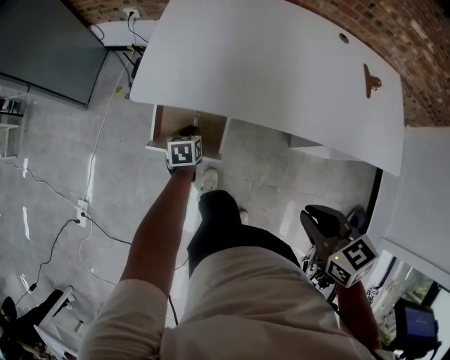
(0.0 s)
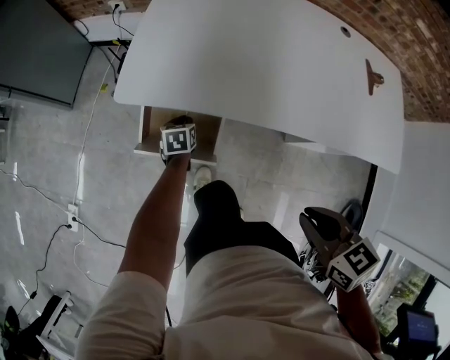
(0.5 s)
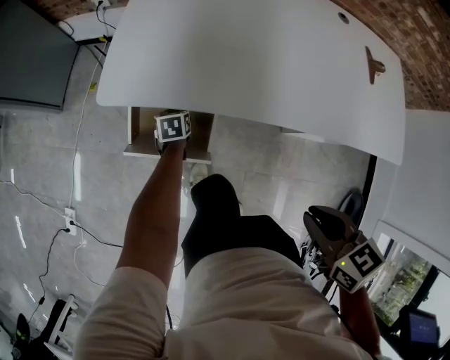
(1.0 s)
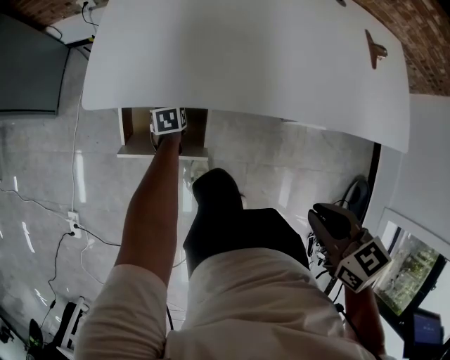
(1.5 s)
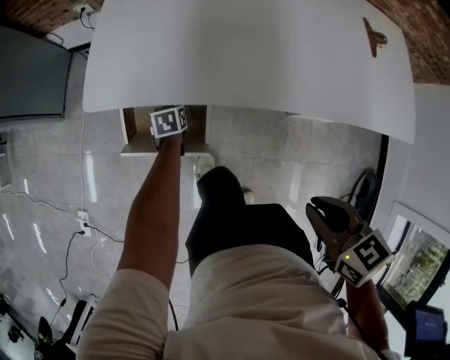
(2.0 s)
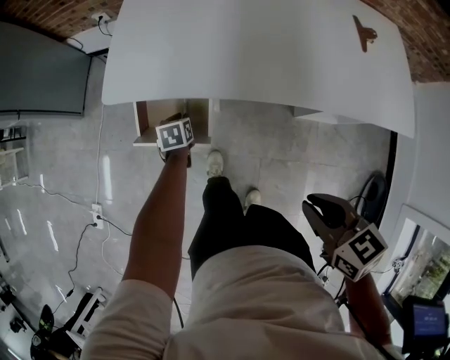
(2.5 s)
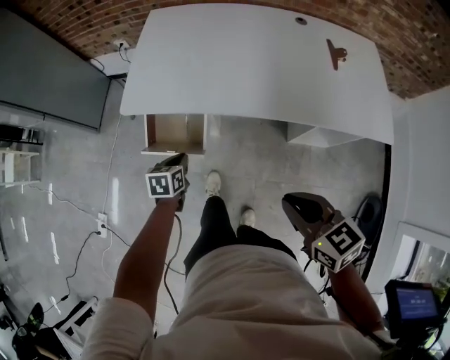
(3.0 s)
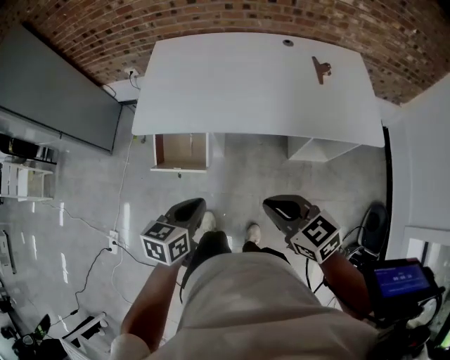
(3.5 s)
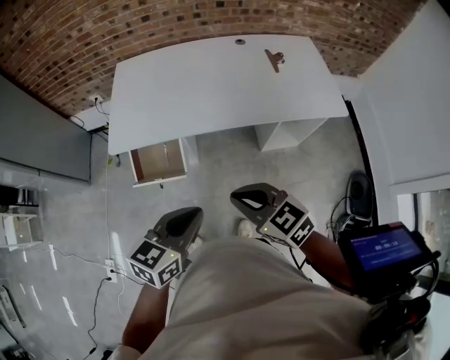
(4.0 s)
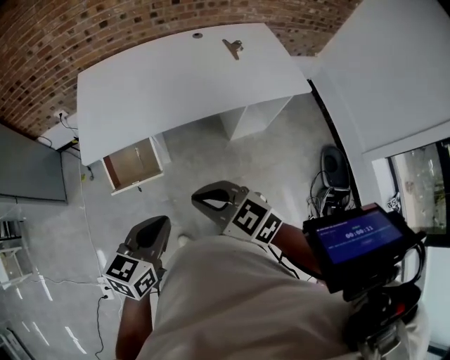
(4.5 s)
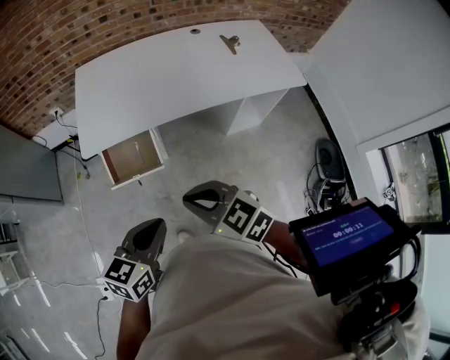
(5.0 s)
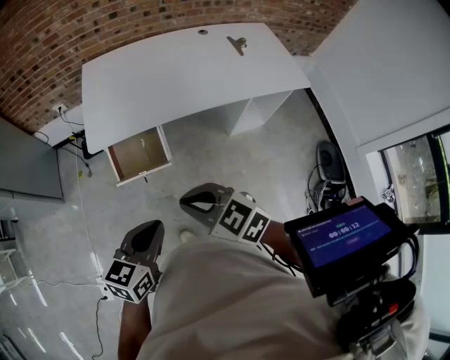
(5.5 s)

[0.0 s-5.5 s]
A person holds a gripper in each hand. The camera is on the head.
0.0 to 2.0 s: The left gripper goes roughly 15 cm downward and forward. Meanwhile the right gripper moves downward, approximately 5 cm.
2.0 to 3.5 s: The left gripper goes about 50 cm upward and backward, and turns by some 30 degrees. The right gripper shifts approximately 15 cm upward and backward, and turns by some 30 degrees.
3.5 to 5.5 s: The right gripper moves to the left, roughly 25 cm, while the left gripper is displaced to the left, backward and upward by roughly 20 cm, and changes its angle by roughly 20 degrees.

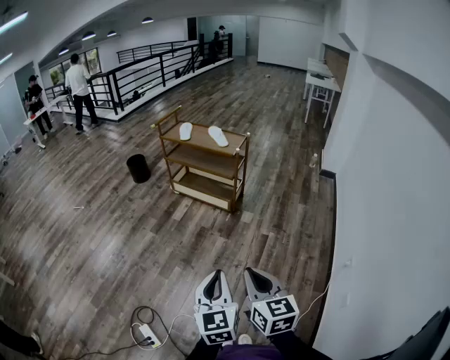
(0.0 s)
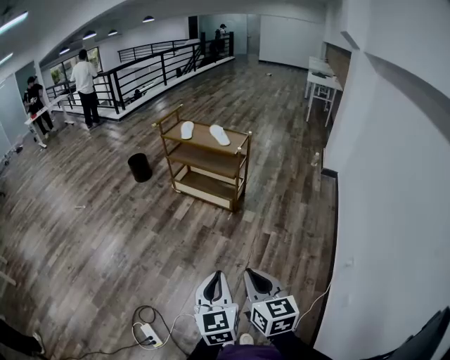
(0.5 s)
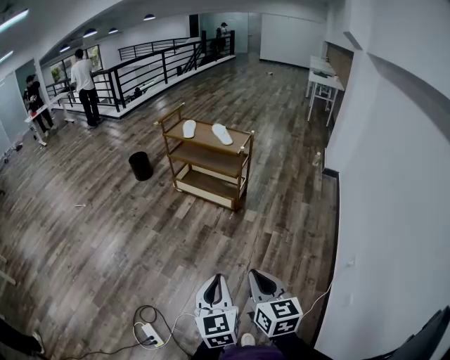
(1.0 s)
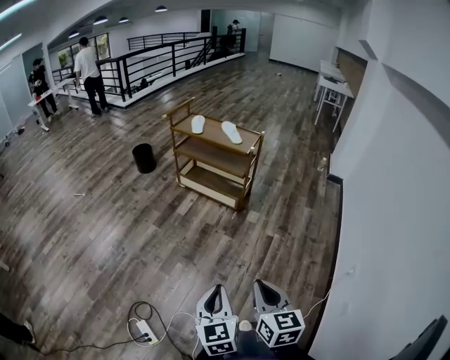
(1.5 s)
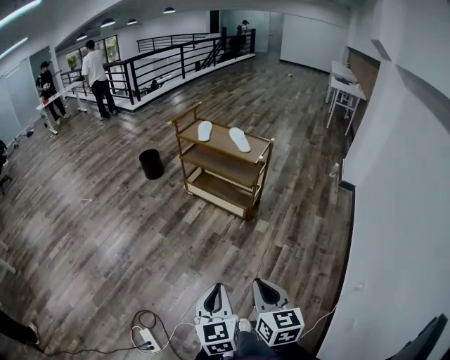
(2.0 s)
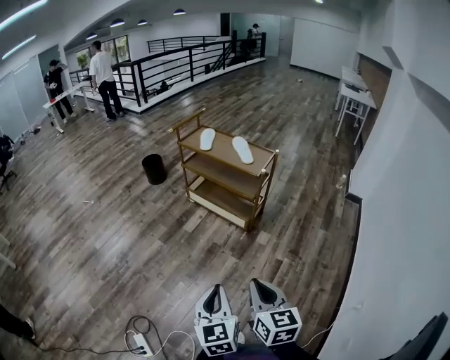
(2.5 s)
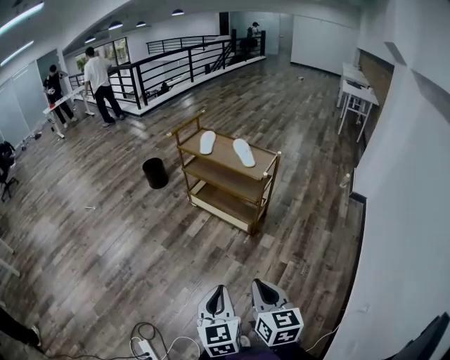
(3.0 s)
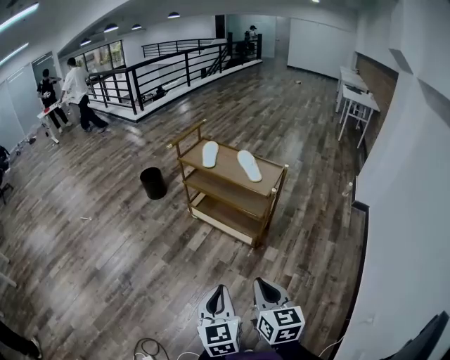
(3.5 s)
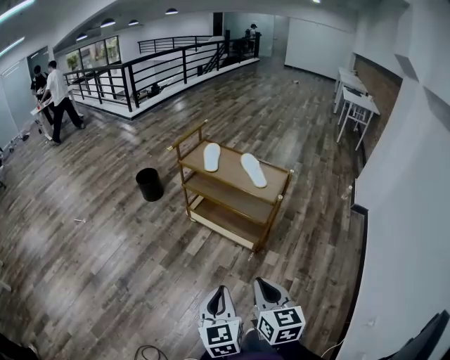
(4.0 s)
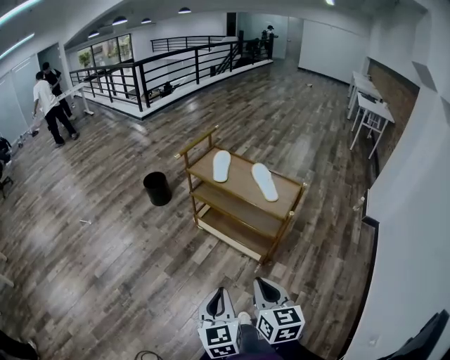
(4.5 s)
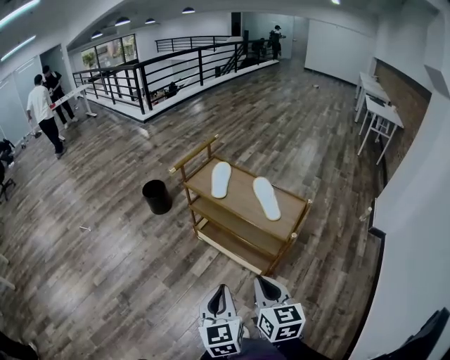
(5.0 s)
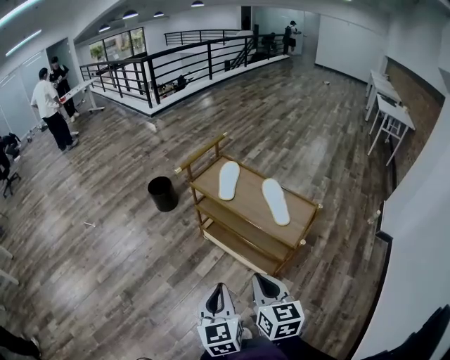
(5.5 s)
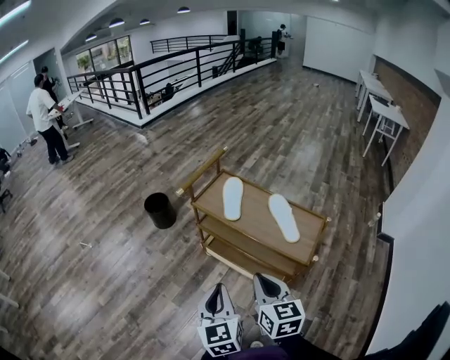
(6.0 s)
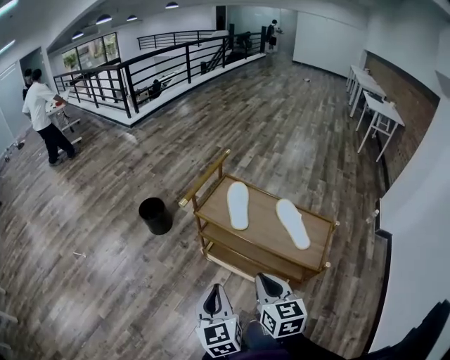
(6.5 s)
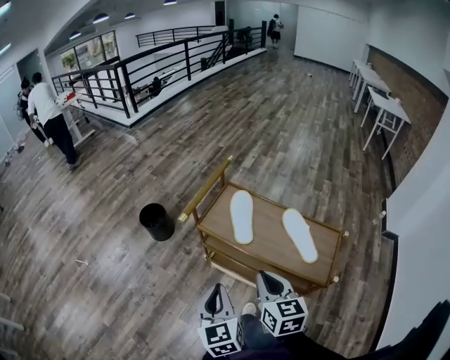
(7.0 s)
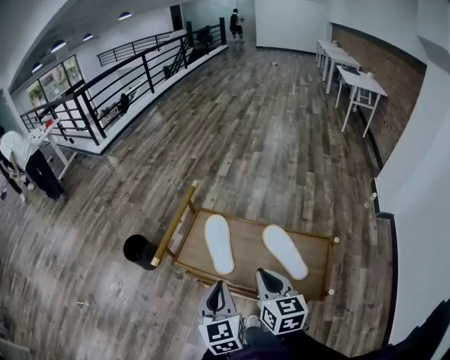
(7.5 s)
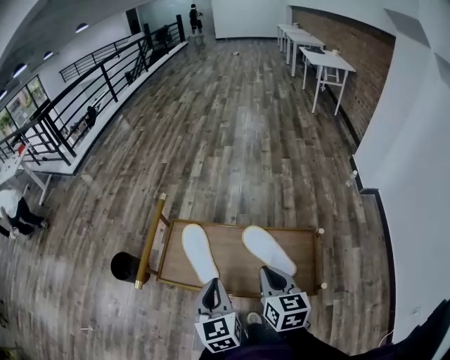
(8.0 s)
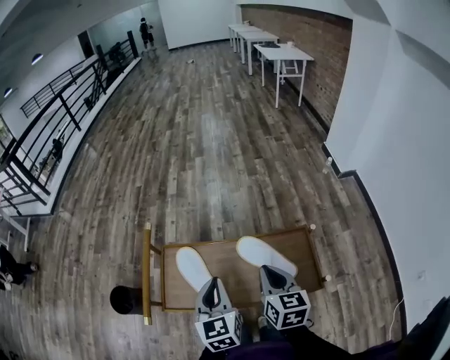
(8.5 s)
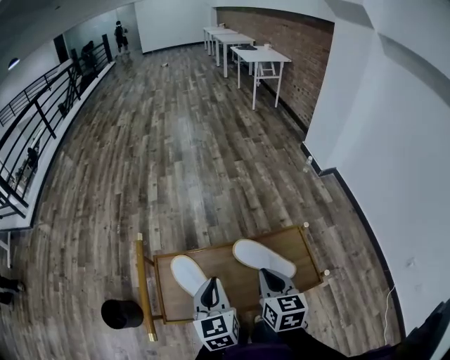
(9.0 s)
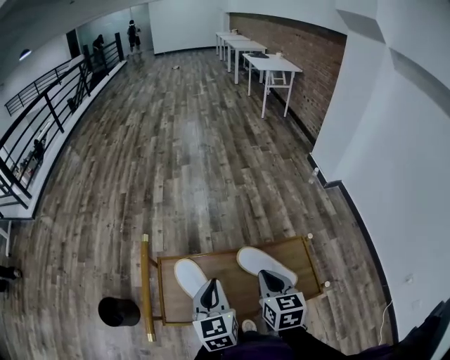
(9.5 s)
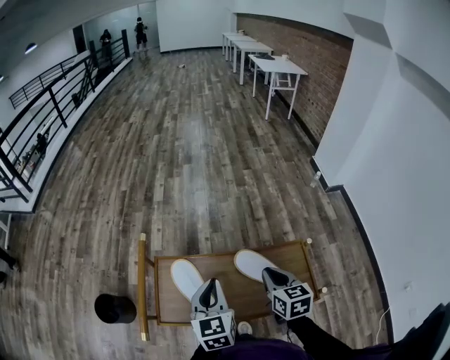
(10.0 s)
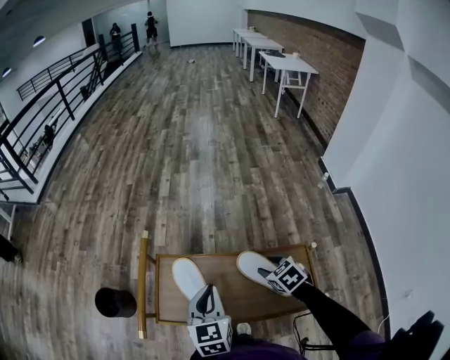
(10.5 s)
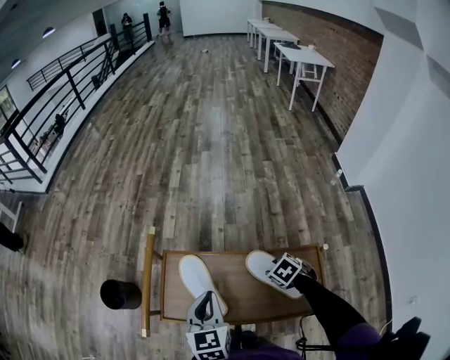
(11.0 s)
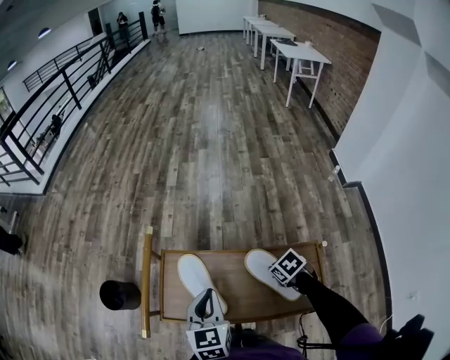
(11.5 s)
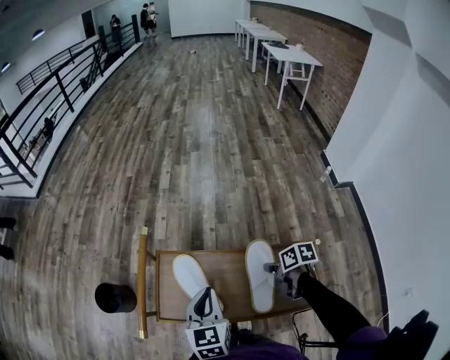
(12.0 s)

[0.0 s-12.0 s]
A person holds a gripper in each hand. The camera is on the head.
0.0 to 2.0 s: The two grippers go about 10 cm forward.
2.0 to 4.0 s: Both grippers move forward, approximately 30 cm.
4.0 to 6.0 s: Both grippers travel together forward, about 35 cm.
6.0 to 8.0 s: The right gripper shifts about 30 cm forward and to the right, and swivels about 30 degrees, while the left gripper goes approximately 35 cm forward, and swivels approximately 20 degrees.
8.0 to 10.0 s: Both grippers travel together forward, roughly 10 cm.
10.0 to 12.0 s: The right gripper is displaced downward by roughly 10 cm, rotates about 50 degrees, and opens, then closes once more.

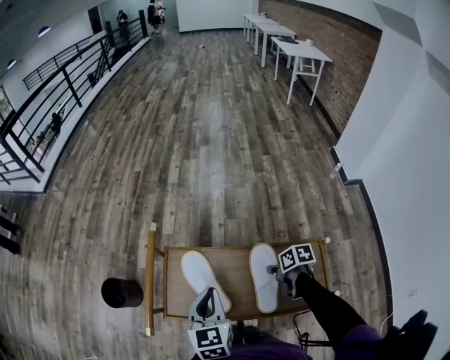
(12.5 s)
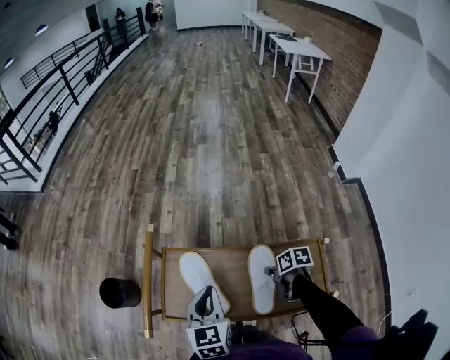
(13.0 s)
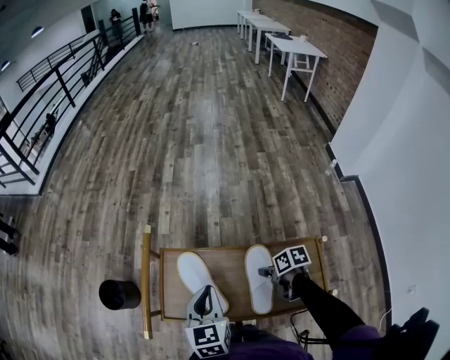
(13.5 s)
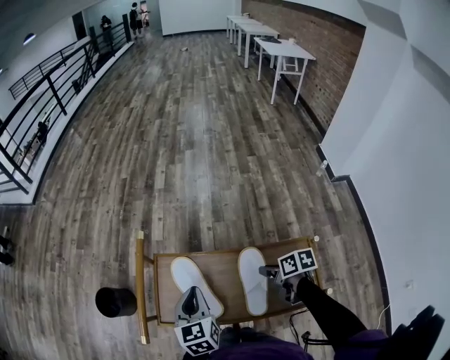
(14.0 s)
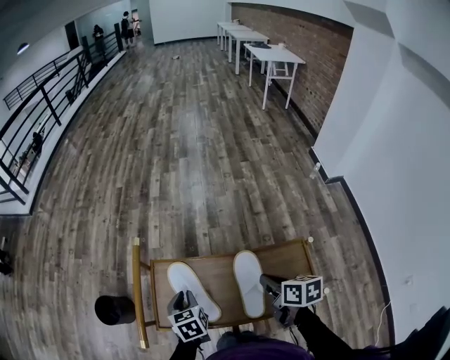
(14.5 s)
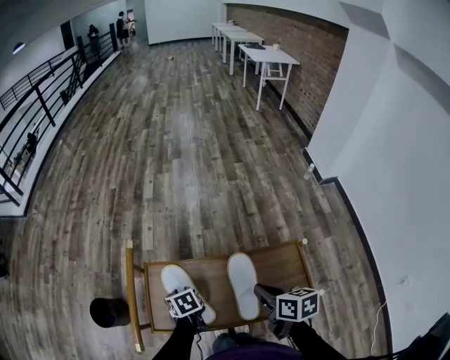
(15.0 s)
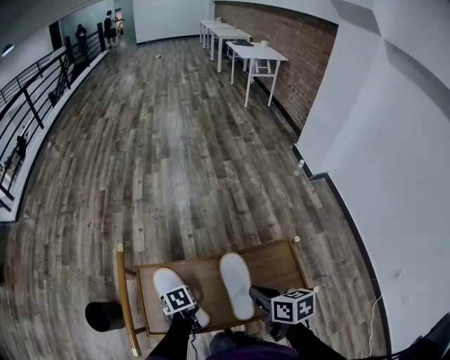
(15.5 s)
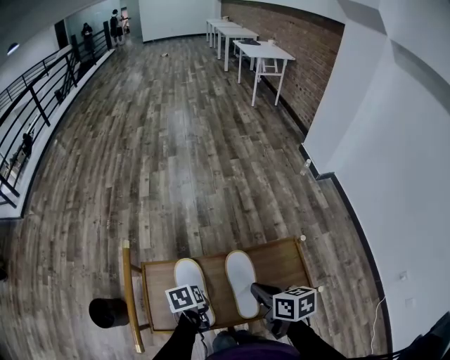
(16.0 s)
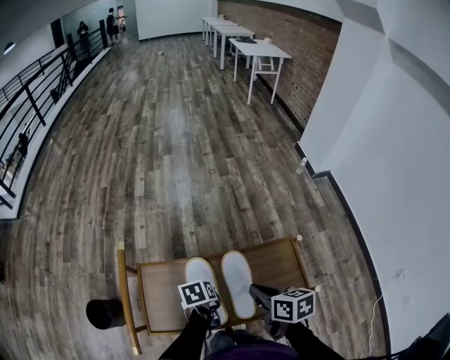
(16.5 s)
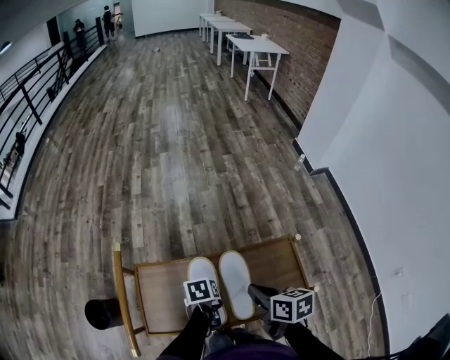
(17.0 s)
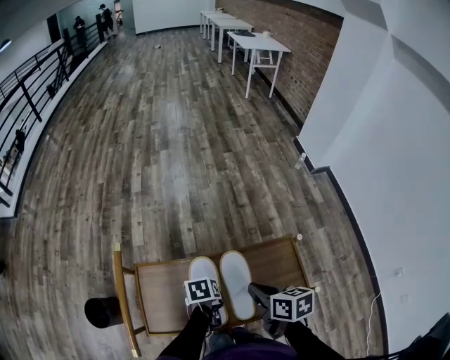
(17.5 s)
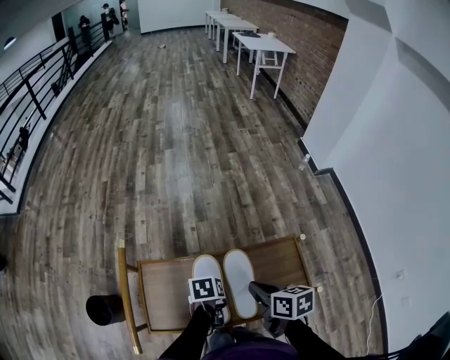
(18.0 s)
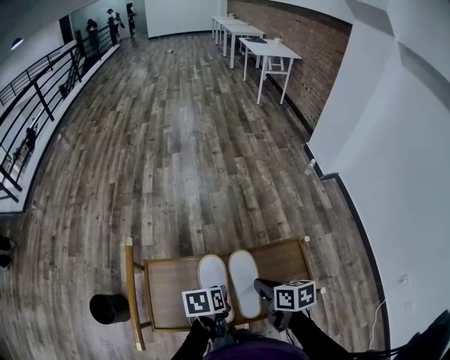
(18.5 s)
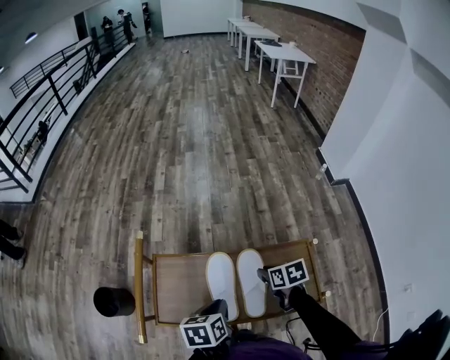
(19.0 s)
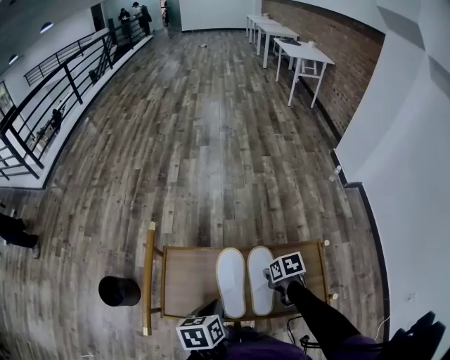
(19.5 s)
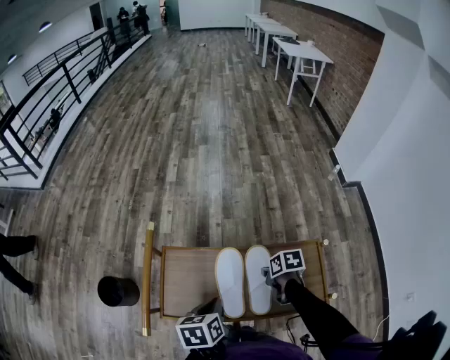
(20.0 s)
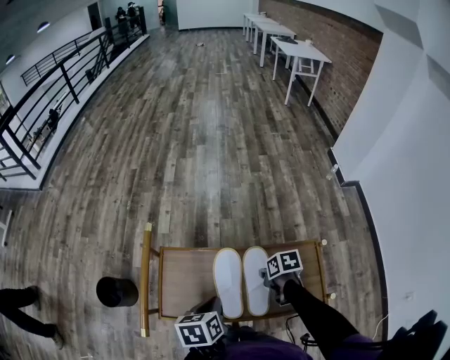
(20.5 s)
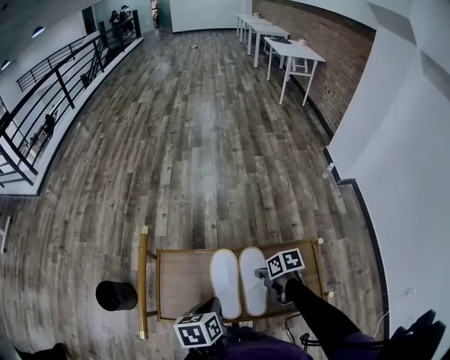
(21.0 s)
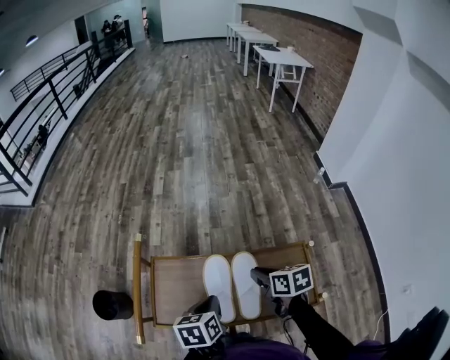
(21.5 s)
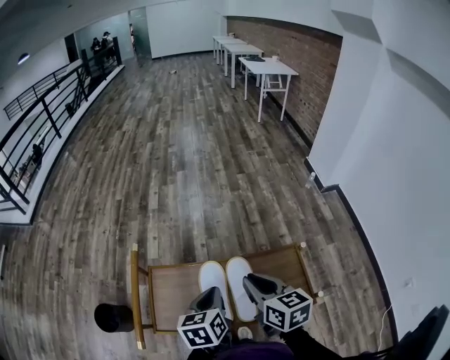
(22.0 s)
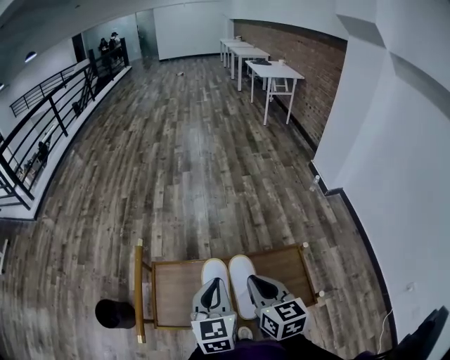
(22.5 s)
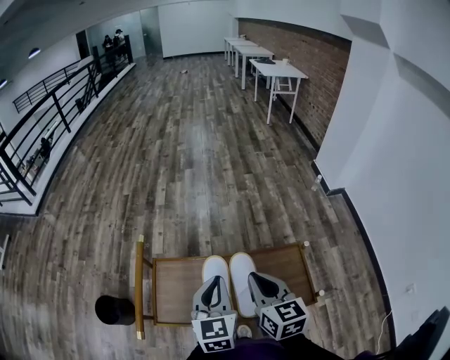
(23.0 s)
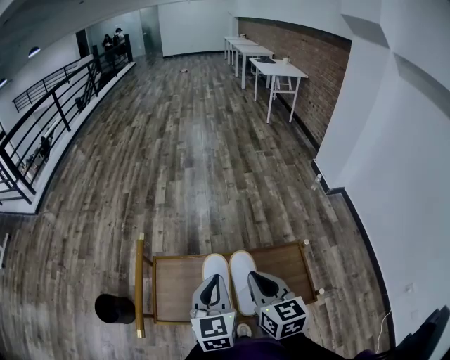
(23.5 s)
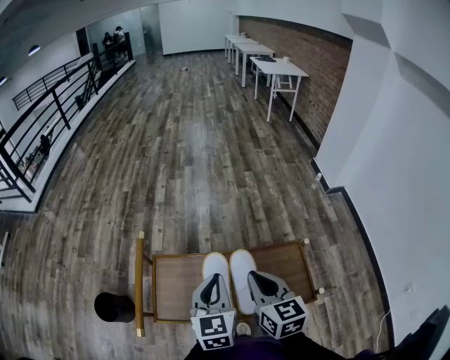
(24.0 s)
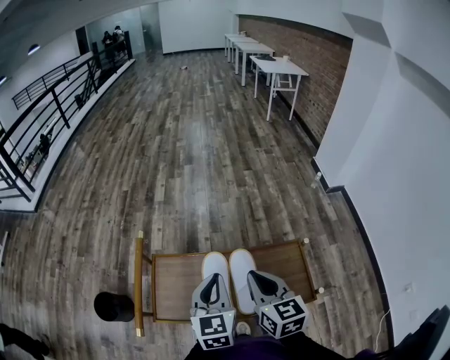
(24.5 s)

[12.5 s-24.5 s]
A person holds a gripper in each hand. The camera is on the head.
12.5 to 14.5 s: The left gripper heads downward, covering some 10 cm. The right gripper travels upward by about 10 cm, and turns by some 30 degrees.
14.5 to 16.5 s: The left gripper shifts by approximately 15 cm, and turns by some 30 degrees.
16.5 to 18.5 s: The left gripper is displaced upward by about 5 cm.
18.5 to 20.5 s: The left gripper shifts approximately 5 cm to the left, while the right gripper moves downward, roughly 10 cm, and rotates approximately 30 degrees.
20.5 to 22.5 s: The left gripper moves upward and to the right, roughly 15 cm, and swivels about 40 degrees, while the right gripper shifts approximately 25 cm upward, and angles its fingers upward, by approximately 40 degrees.
22.5 to 24.5 s: The two grippers keep their place.
